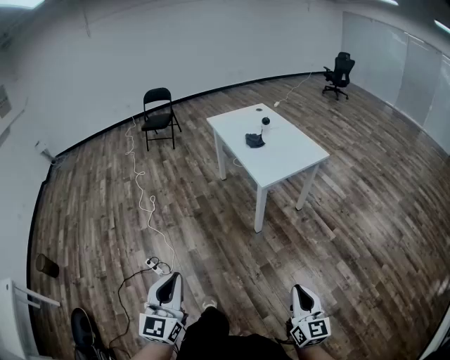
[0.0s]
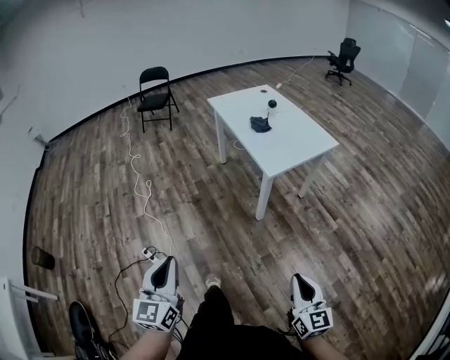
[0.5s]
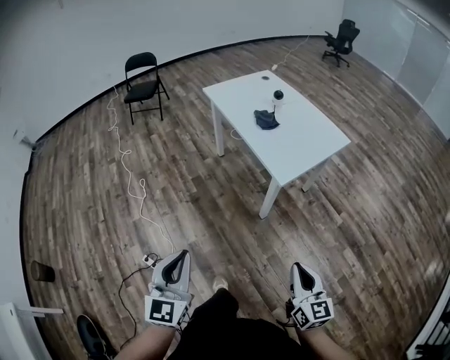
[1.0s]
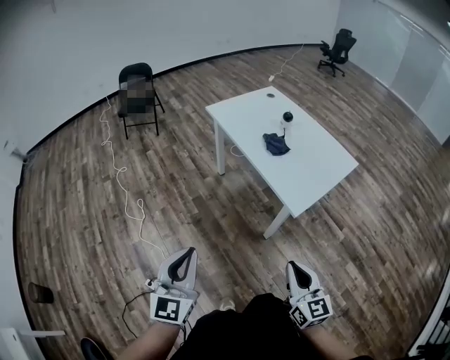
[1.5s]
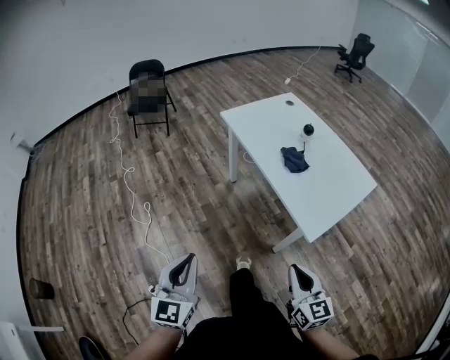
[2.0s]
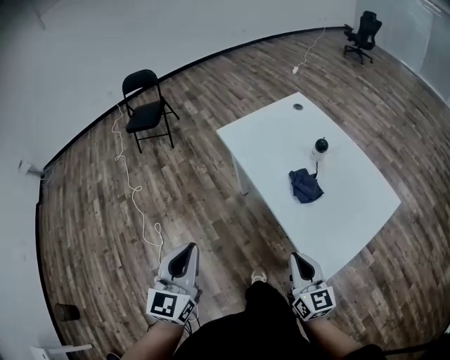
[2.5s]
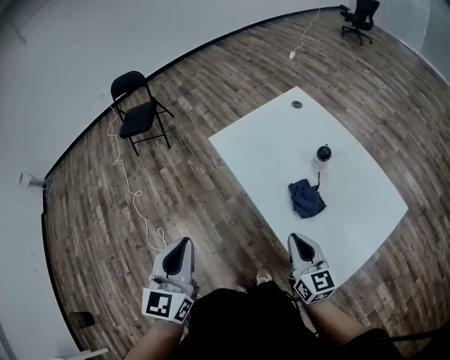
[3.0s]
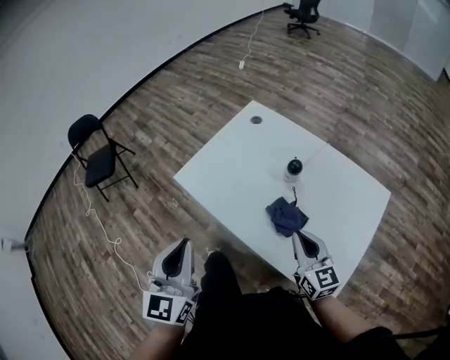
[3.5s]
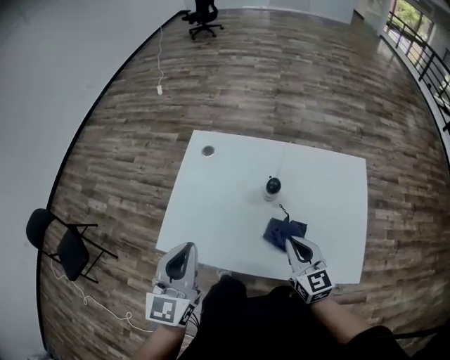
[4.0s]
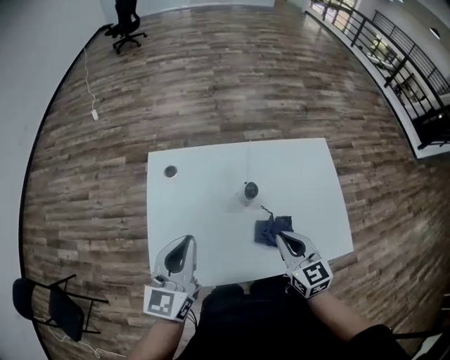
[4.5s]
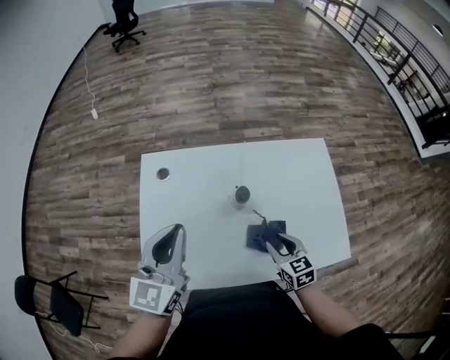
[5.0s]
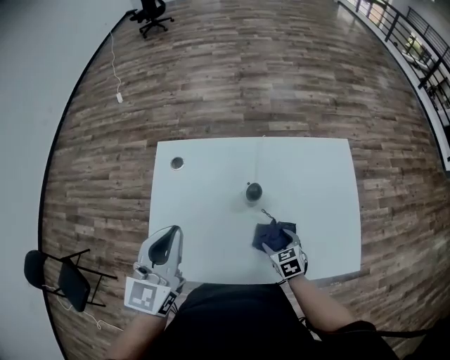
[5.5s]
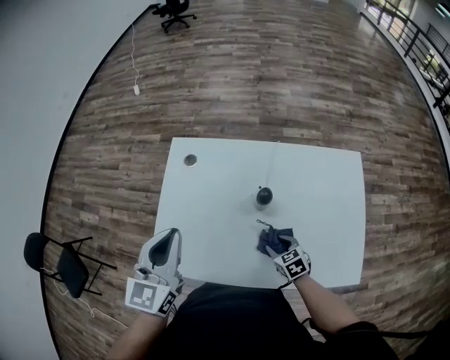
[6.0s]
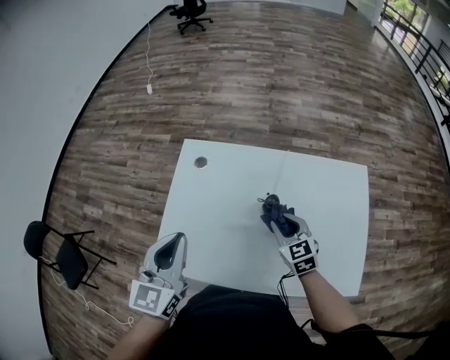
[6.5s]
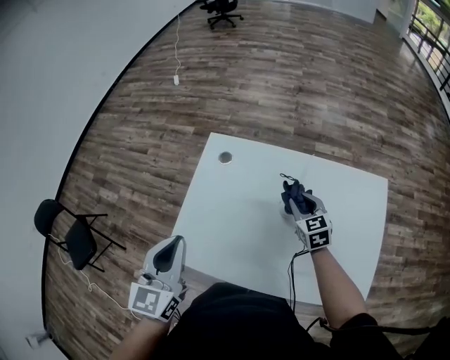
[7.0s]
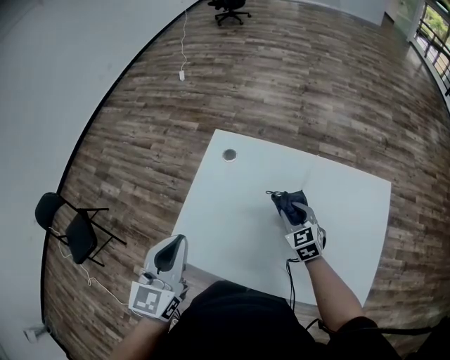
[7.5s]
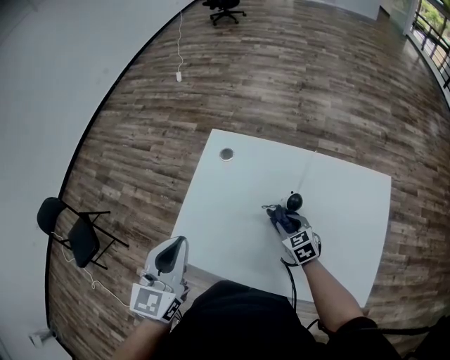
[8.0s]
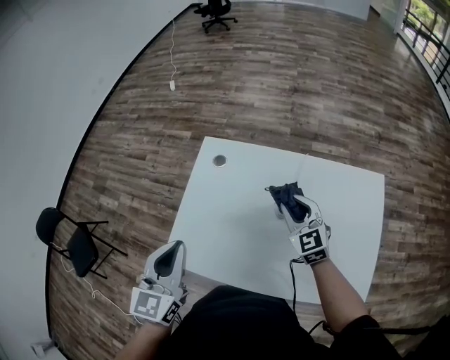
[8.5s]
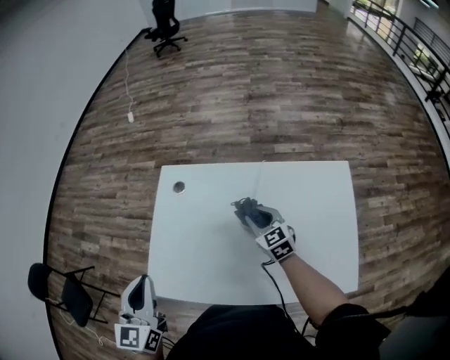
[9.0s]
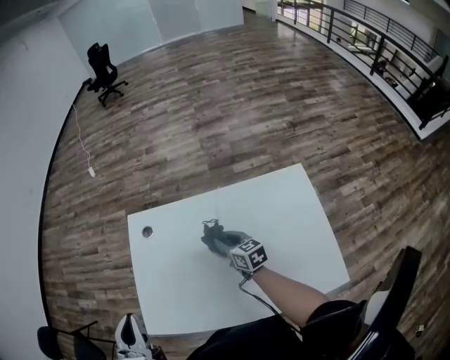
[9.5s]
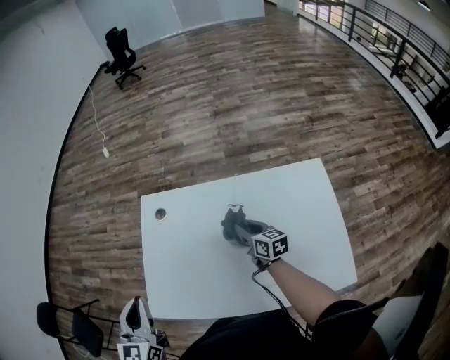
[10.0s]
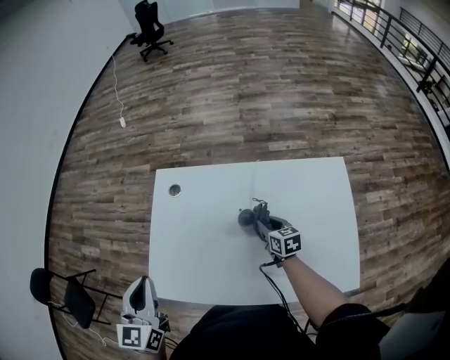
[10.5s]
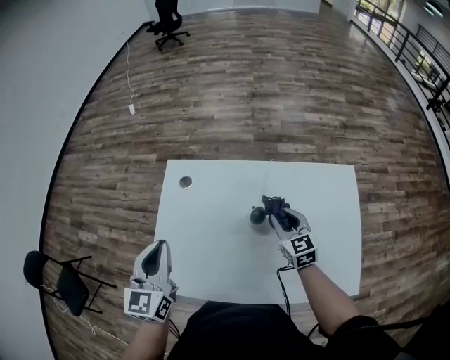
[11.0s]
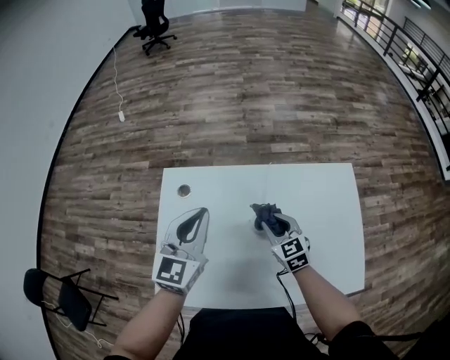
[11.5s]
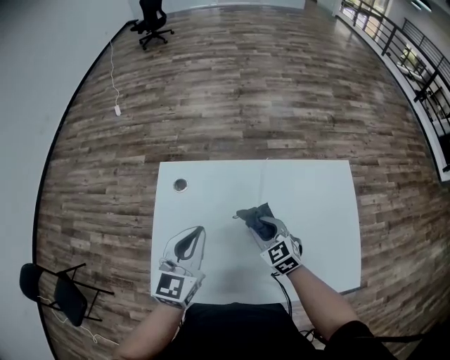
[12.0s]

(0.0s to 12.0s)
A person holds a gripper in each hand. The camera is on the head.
0.0s - 2.0s: The two grippers travel together, forward, roughly 40 cm.
2.0s - 4.0s: The pair of grippers is taken approximately 50 cm. The right gripper swivels roughly 40 degrees; the left gripper changes its angle by about 50 degrees.
4.0s - 6.0s: The right gripper goes about 20 cm downward, tips its fingers downward by approximately 30 degrees, and opens. The left gripper goes approximately 10 cm forward.
6.0s - 8.0s: The left gripper ends up about 5 cm from where it was, while the right gripper shifts some 10 cm forward and upward.
8.0s - 10.0s: The right gripper is displaced to the right and forward by some 10 cm, reaches roughly 15 cm upward, then returns, and changes its angle by about 50 degrees.
10.0s - 12.0s: The right gripper reaches about 5 cm downward, then returns, and rotates around the line of its fingers by about 50 degrees, counterclockwise from behind. The left gripper heads to the right and forward, covering some 15 cm, and swivels about 20 degrees.

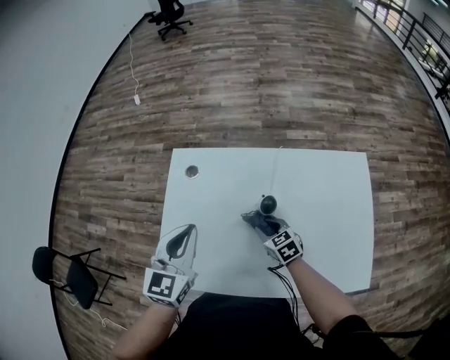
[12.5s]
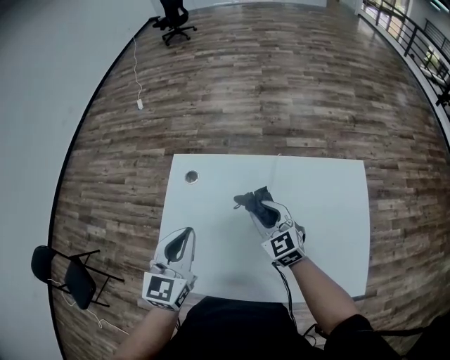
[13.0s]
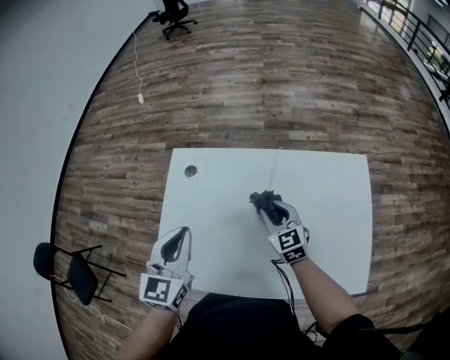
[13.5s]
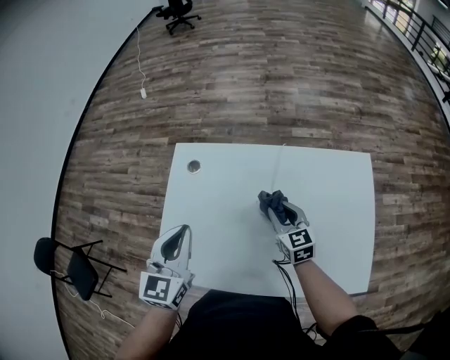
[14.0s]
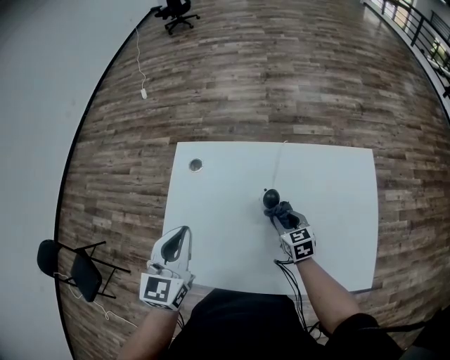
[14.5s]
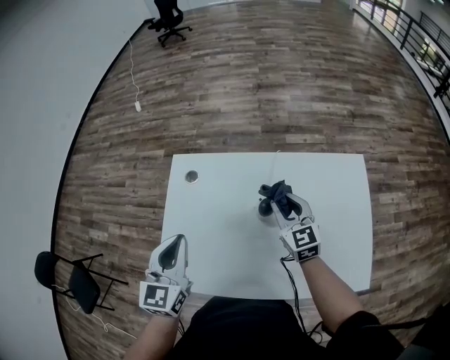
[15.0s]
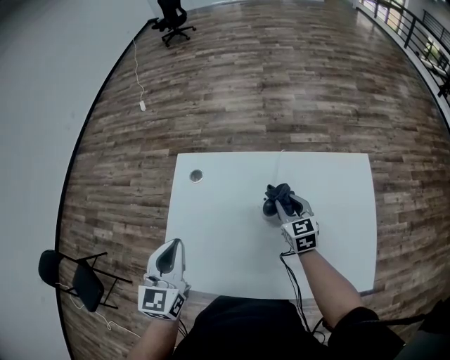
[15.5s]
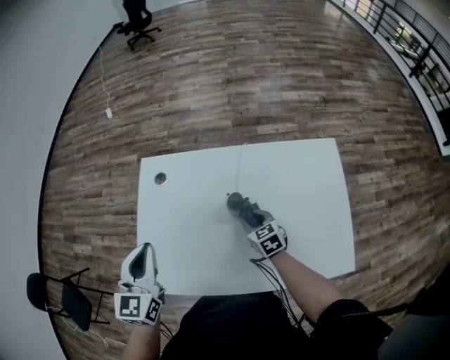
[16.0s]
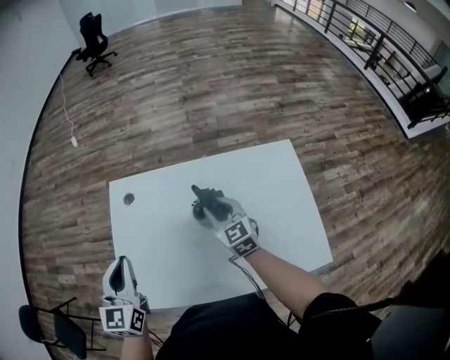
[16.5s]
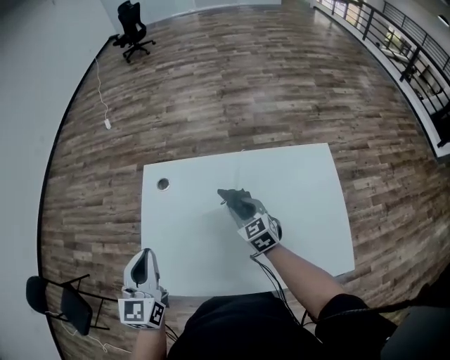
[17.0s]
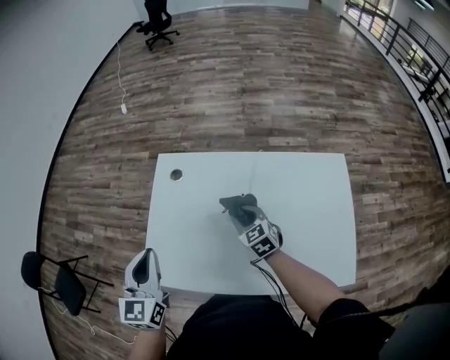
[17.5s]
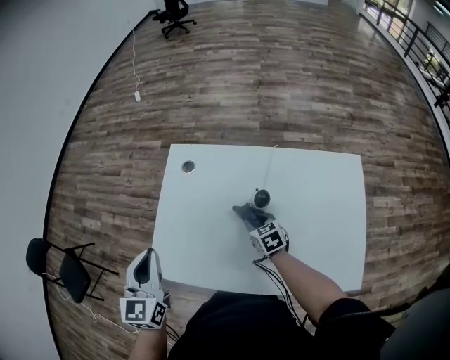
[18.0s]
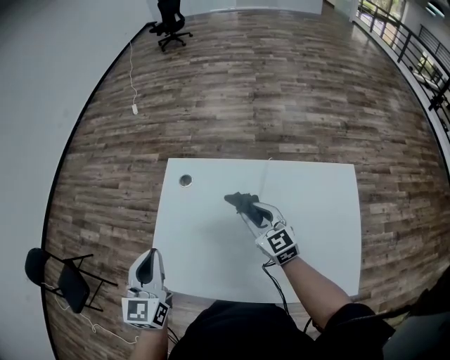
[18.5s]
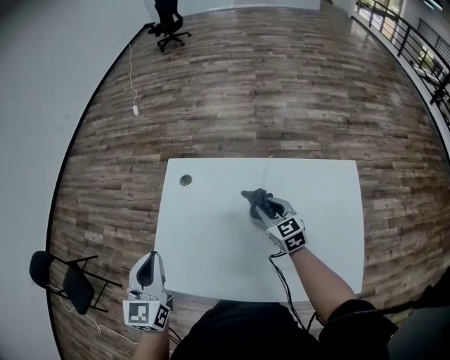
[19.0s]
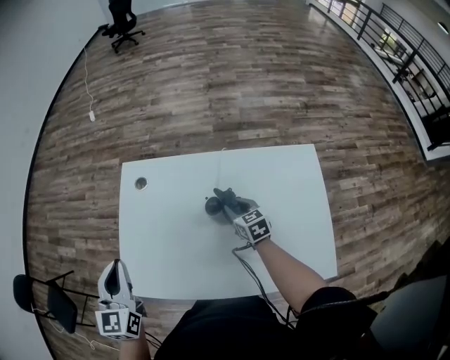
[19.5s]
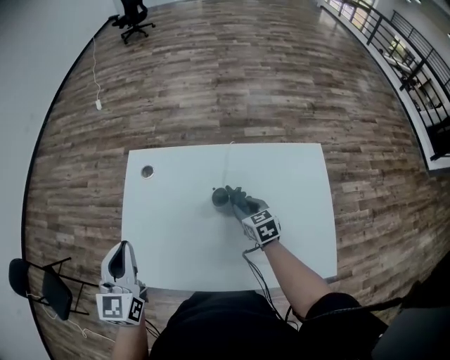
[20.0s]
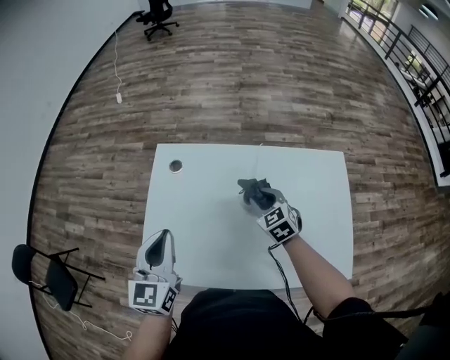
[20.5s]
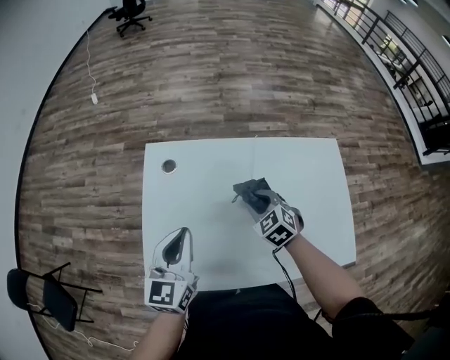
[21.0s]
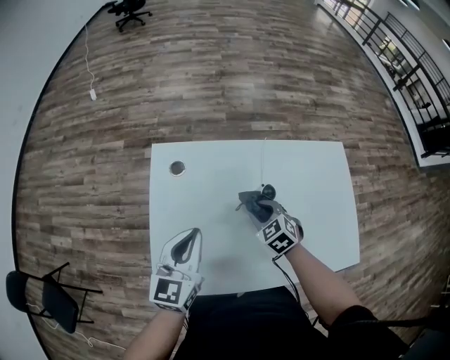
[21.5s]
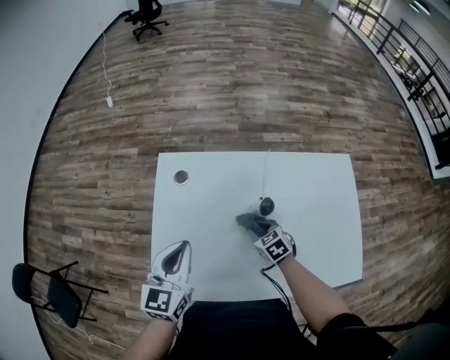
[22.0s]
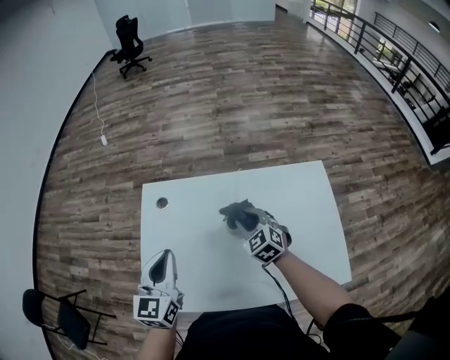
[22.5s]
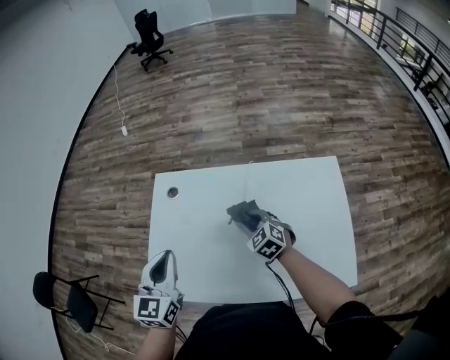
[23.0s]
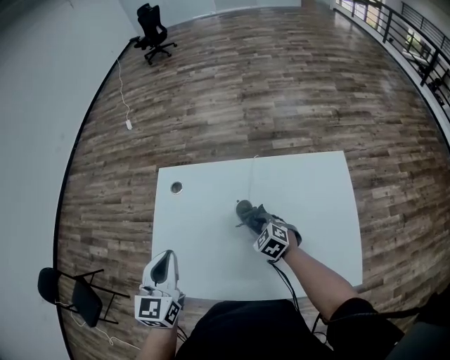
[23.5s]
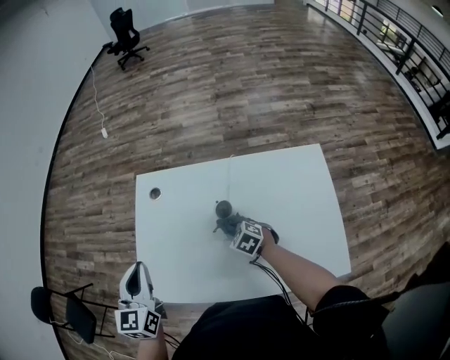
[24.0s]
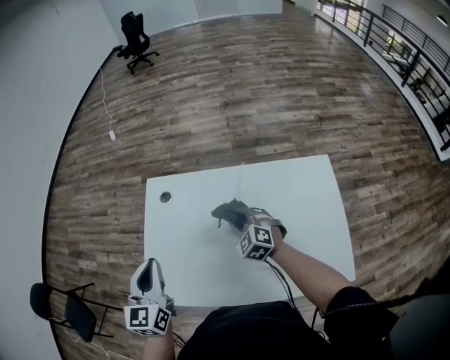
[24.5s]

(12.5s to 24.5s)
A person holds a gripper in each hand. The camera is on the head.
12.5s - 14.5s: The right gripper is displaced to the right by approximately 5 cm, and reaches roughly 15 cm upward, then returns.
14.5s - 16.5s: The right gripper swings up and down, approximately 15 cm each way, with 2 reversals, and rotates about 20 degrees.
16.5s - 18.5s: The right gripper travels to the left by some 5 cm, and reaches about 15 cm downward, then returns.
18.5s - 20.5s: The left gripper travels to the right by some 5 cm. Meanwhile the right gripper moves to the right and downward, some 10 cm, and swivels some 30 degrees.
20.5s - 22.5s: The right gripper goes downward and returns, approximately 10 cm each way.
22.5s - 24.5s: The left gripper is displaced to the left by some 5 cm. Meanwhile the right gripper reaches about 10 cm downward, then returns.

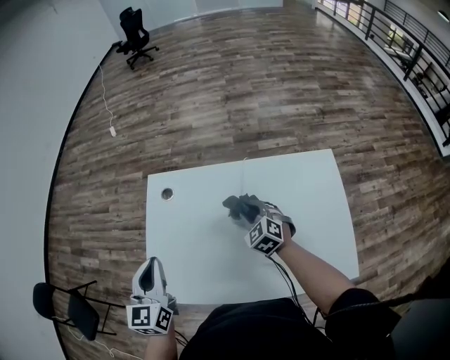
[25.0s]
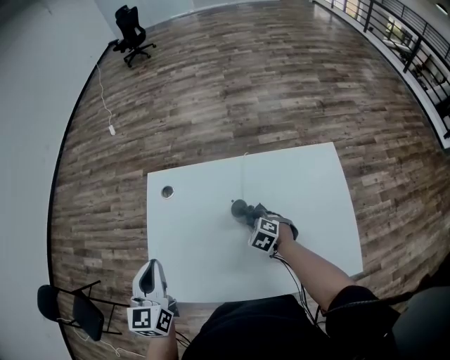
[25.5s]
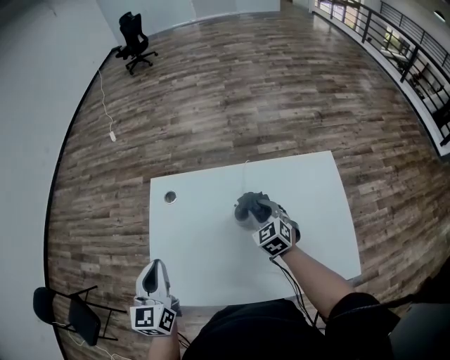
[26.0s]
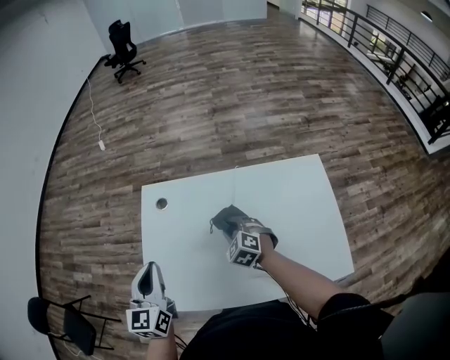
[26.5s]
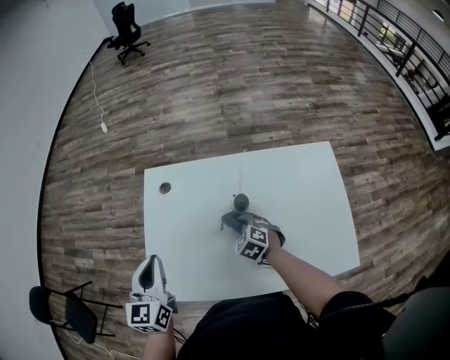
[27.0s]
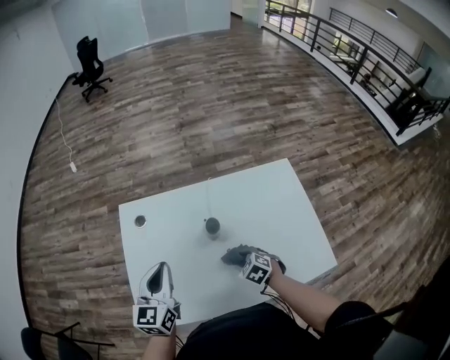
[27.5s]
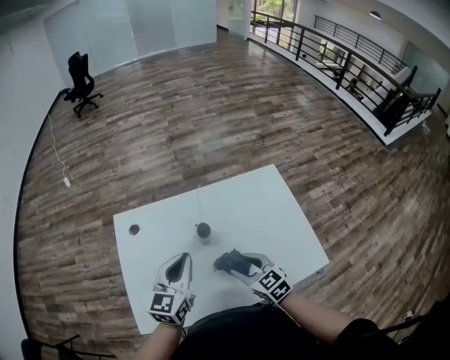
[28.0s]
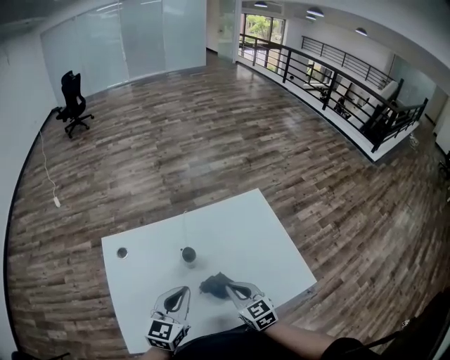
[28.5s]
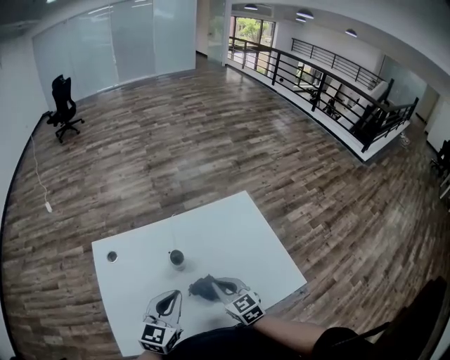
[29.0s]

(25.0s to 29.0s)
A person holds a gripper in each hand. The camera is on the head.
25.0s - 27.0s: The right gripper swings up and down, roughly 10 cm each way, with 2 reversals.
27.0s - 29.0s: The right gripper shifts by roughly 15 cm, changes its angle by some 50 degrees, and closes its fingers, while the left gripper ends up some 20 cm from where it was, and swivels about 40 degrees.
